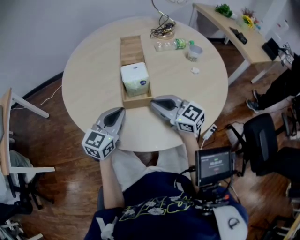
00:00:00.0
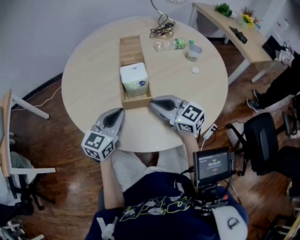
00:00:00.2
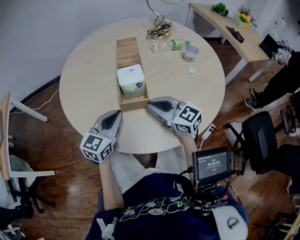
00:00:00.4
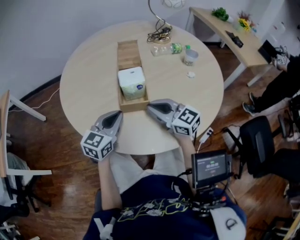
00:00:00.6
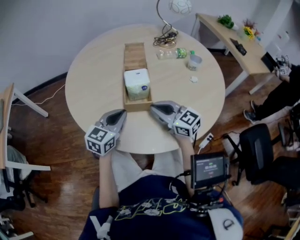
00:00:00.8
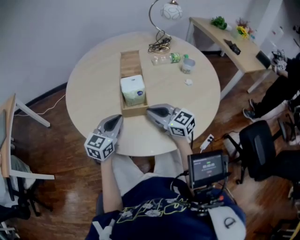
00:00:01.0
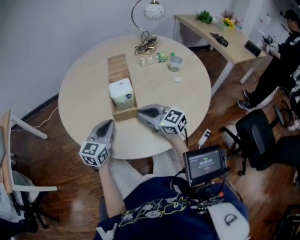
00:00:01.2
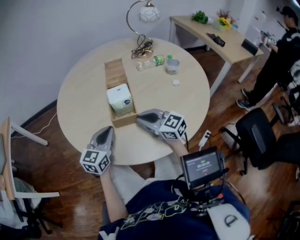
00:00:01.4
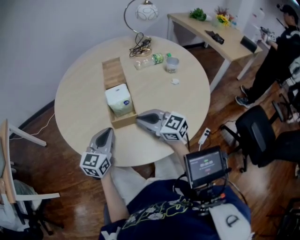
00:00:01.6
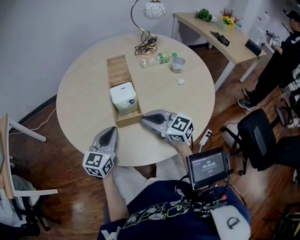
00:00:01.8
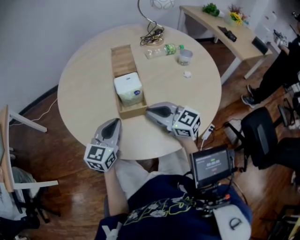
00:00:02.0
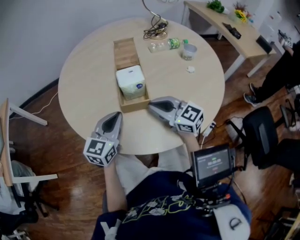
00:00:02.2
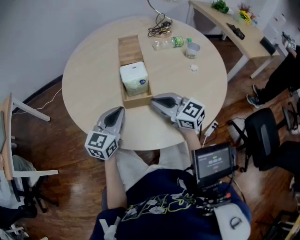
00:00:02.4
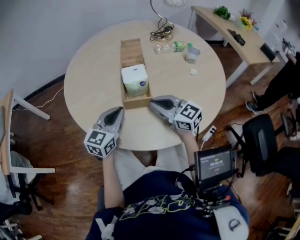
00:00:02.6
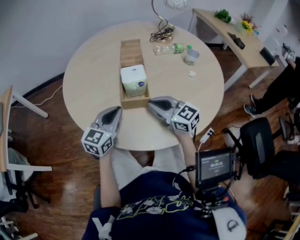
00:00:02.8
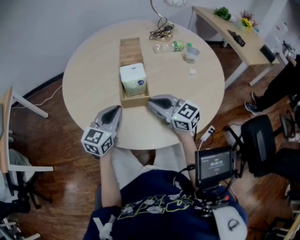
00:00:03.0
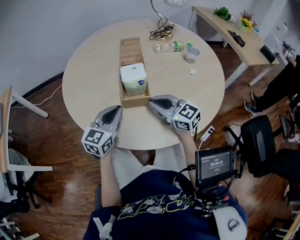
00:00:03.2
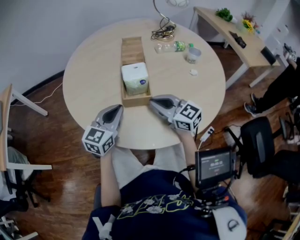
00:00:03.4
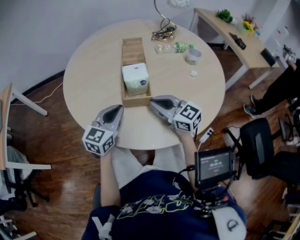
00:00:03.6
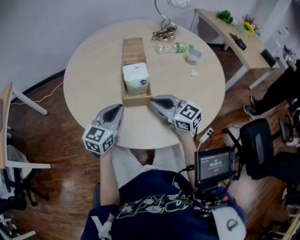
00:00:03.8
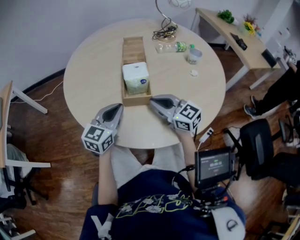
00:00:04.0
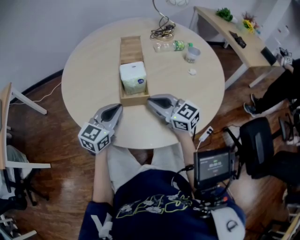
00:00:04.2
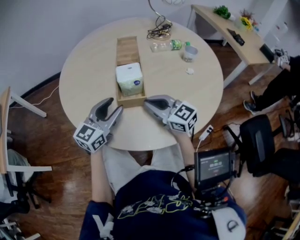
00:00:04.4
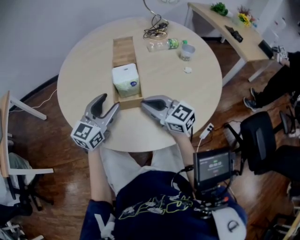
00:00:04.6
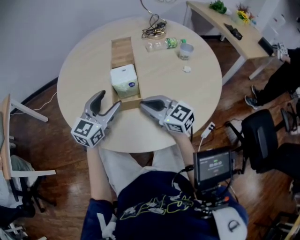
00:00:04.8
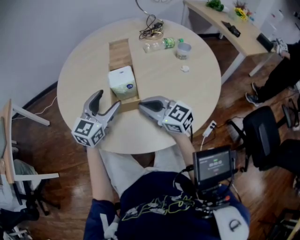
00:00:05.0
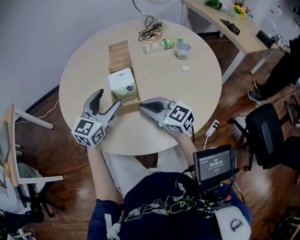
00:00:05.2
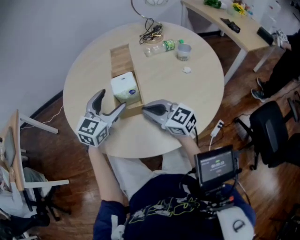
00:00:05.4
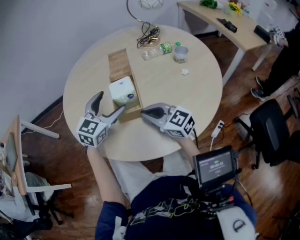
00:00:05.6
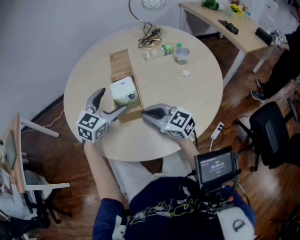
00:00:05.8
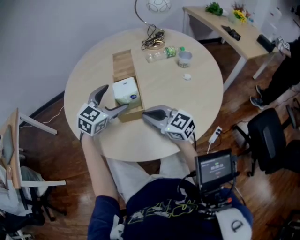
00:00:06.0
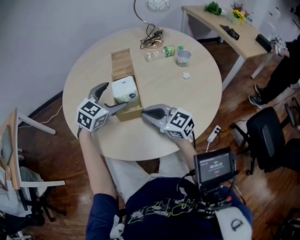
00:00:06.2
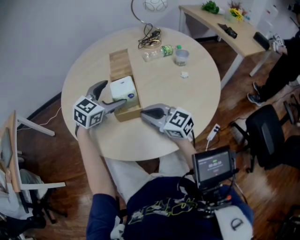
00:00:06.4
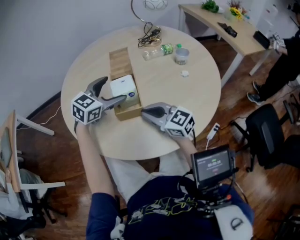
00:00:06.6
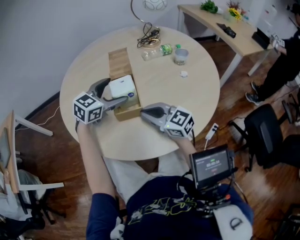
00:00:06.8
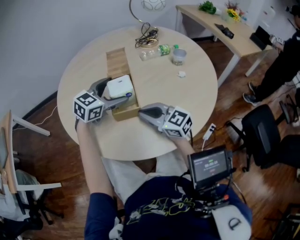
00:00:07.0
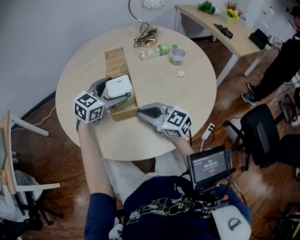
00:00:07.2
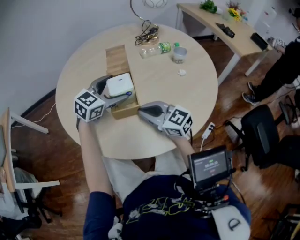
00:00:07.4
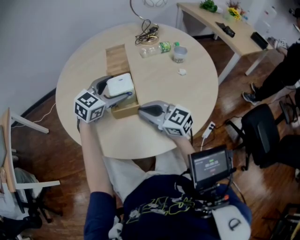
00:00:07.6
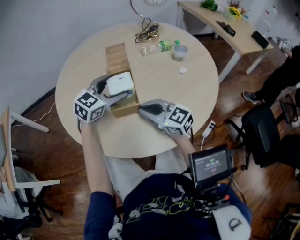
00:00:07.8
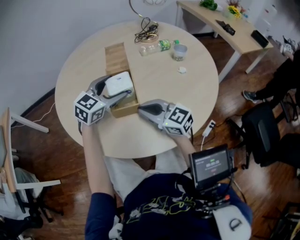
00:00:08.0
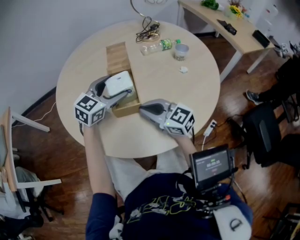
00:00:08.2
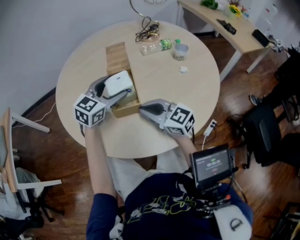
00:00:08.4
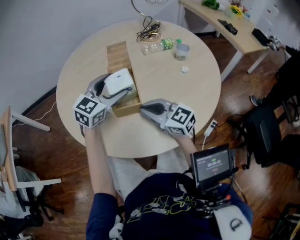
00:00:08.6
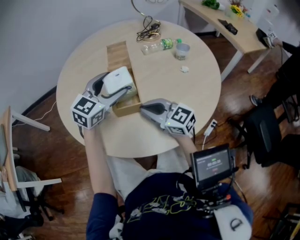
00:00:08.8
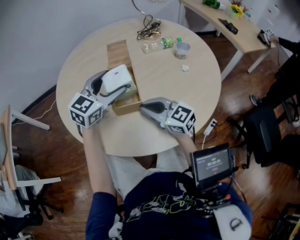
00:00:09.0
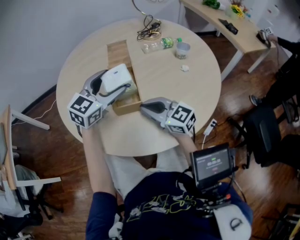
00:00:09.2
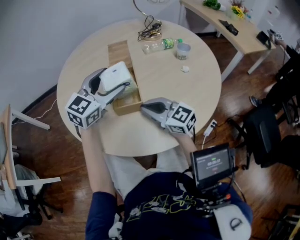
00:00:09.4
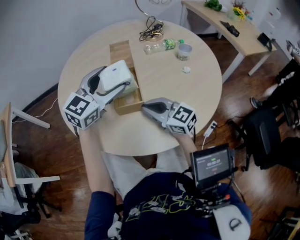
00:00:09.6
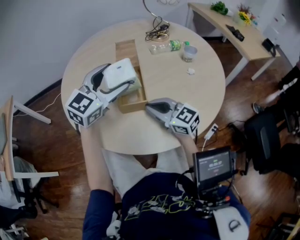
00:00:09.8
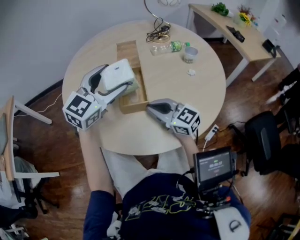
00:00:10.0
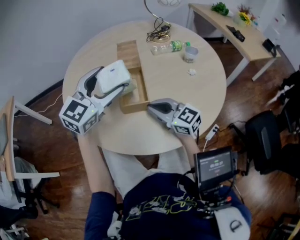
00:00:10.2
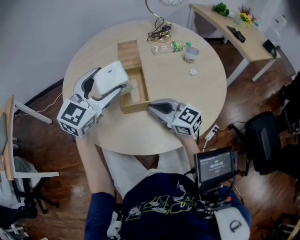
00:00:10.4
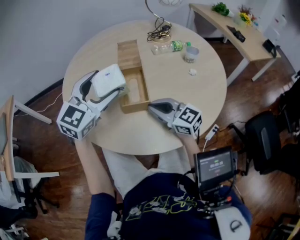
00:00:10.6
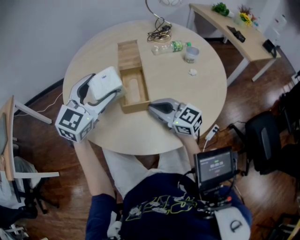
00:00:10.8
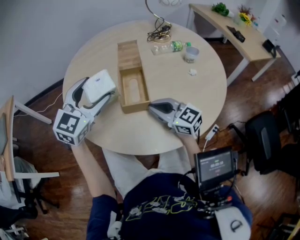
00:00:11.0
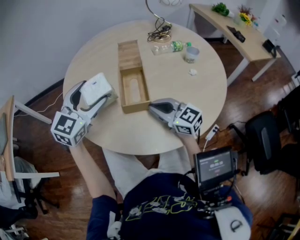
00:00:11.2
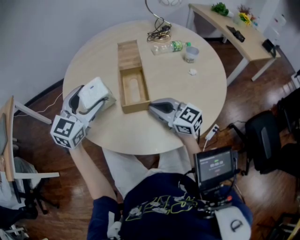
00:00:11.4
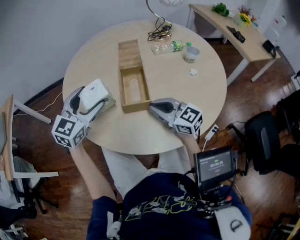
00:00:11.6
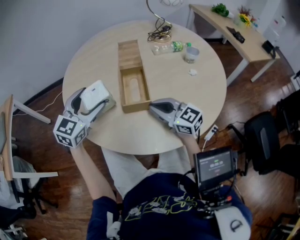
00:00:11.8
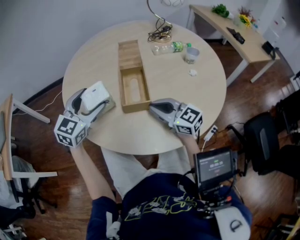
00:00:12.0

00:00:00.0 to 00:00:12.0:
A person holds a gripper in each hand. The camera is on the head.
00:00:00.0 to 00:00:01.6: The grippers make only small movements.
00:00:01.6 to 00:00:03.0: Both grippers stay put.
00:00:03.0 to 00:00:04.4: The grippers move only a little.
00:00:04.4 to 00:00:06.0: The left gripper goes about 10 cm forward, turns by some 30 degrees, and opens its fingers.
00:00:06.0 to 00:00:09.0: The grippers move only a little.
00:00:09.0 to 00:00:10.4: The left gripper goes about 5 cm upward.
00:00:10.4 to 00:00:12.0: The left gripper goes some 10 cm to the left and downward.

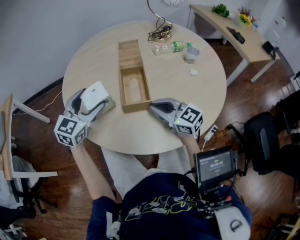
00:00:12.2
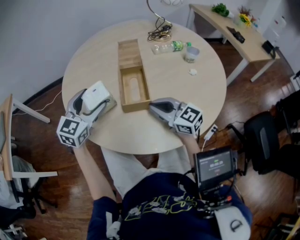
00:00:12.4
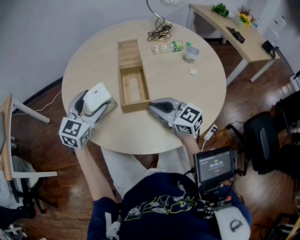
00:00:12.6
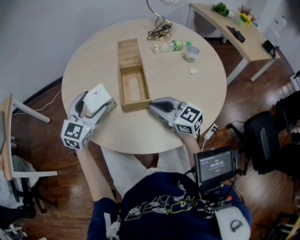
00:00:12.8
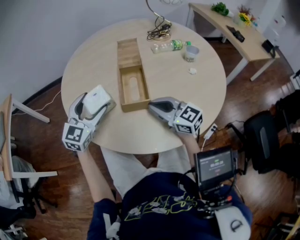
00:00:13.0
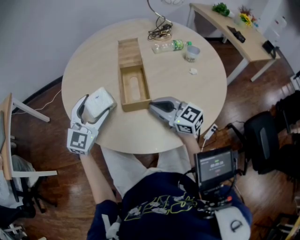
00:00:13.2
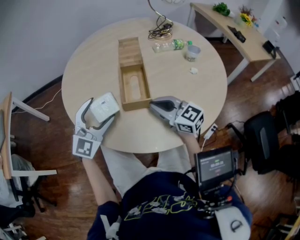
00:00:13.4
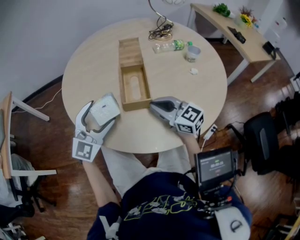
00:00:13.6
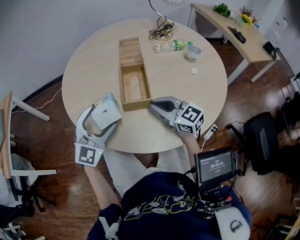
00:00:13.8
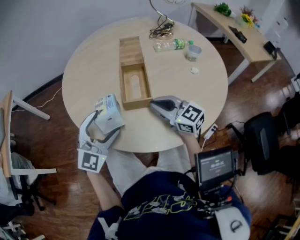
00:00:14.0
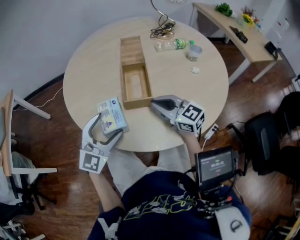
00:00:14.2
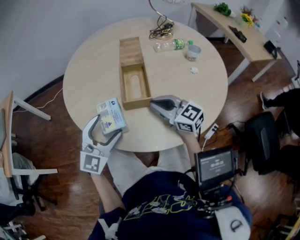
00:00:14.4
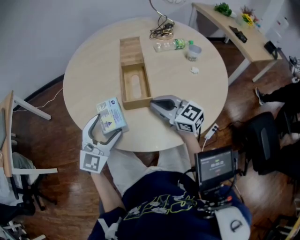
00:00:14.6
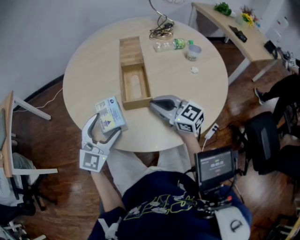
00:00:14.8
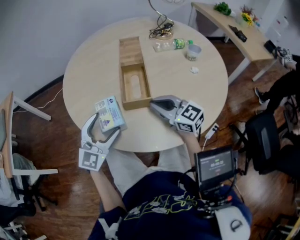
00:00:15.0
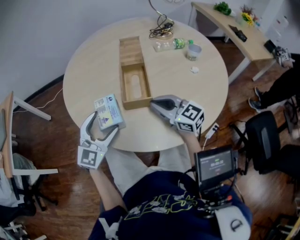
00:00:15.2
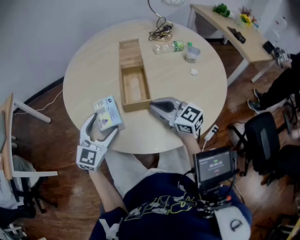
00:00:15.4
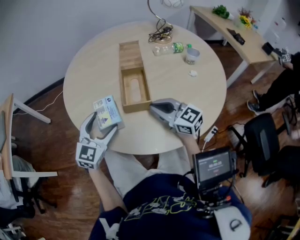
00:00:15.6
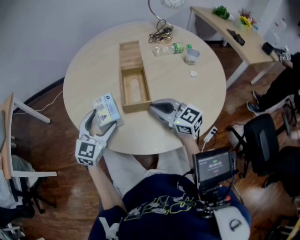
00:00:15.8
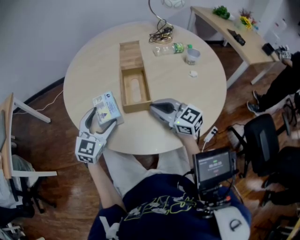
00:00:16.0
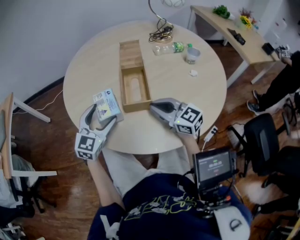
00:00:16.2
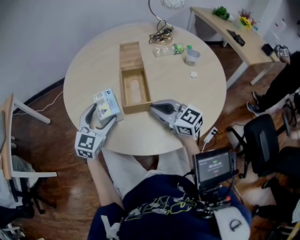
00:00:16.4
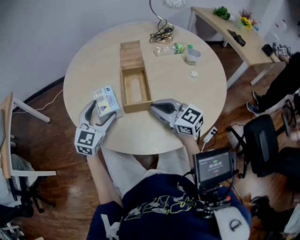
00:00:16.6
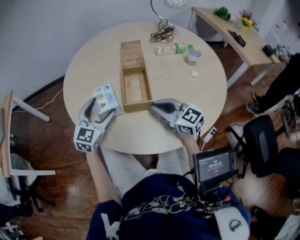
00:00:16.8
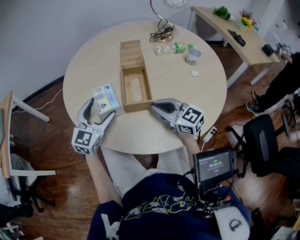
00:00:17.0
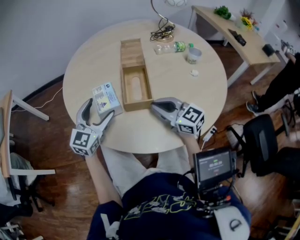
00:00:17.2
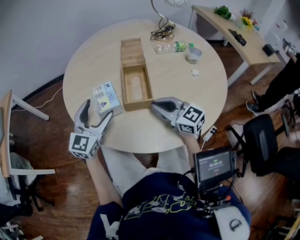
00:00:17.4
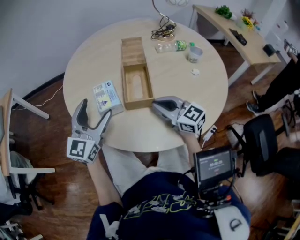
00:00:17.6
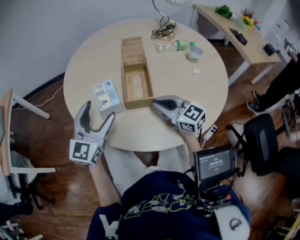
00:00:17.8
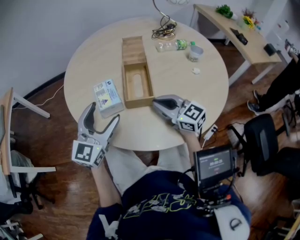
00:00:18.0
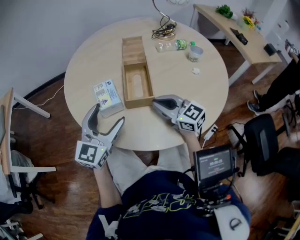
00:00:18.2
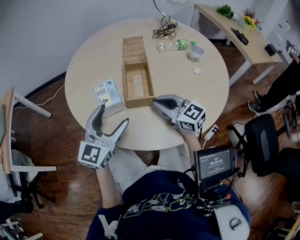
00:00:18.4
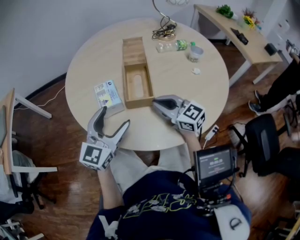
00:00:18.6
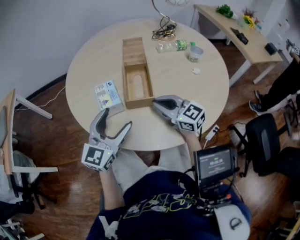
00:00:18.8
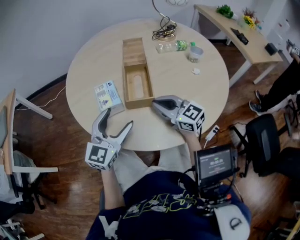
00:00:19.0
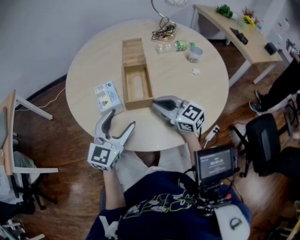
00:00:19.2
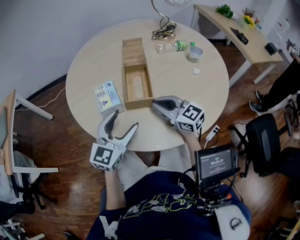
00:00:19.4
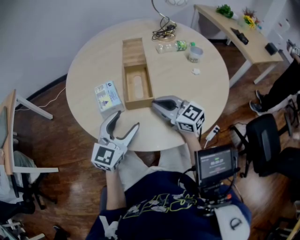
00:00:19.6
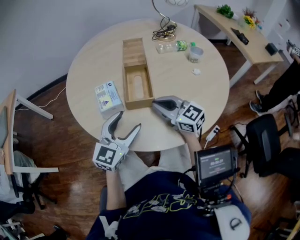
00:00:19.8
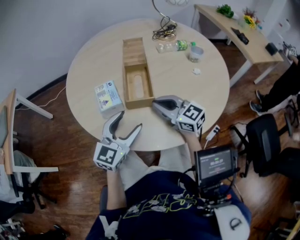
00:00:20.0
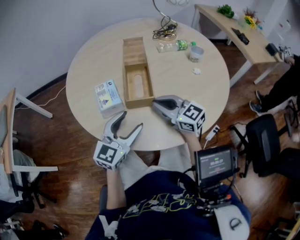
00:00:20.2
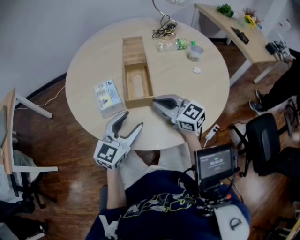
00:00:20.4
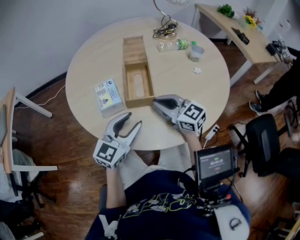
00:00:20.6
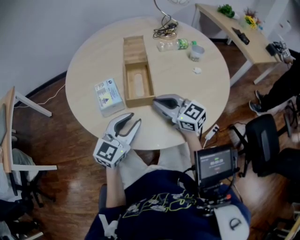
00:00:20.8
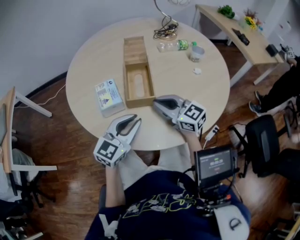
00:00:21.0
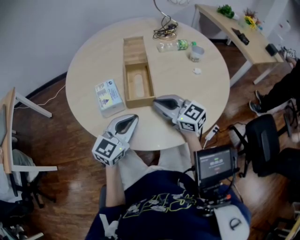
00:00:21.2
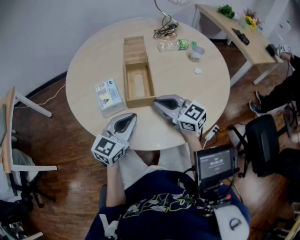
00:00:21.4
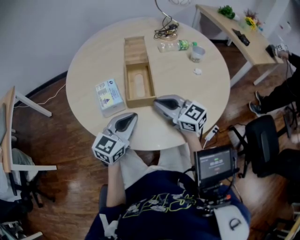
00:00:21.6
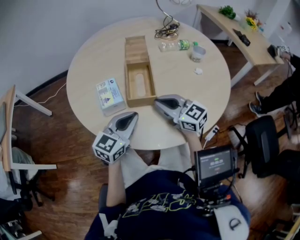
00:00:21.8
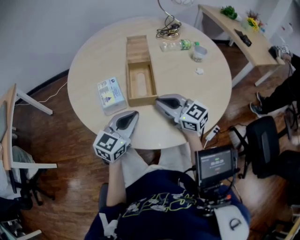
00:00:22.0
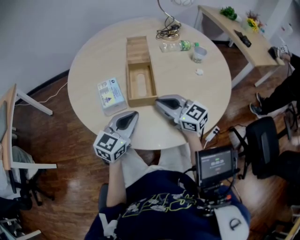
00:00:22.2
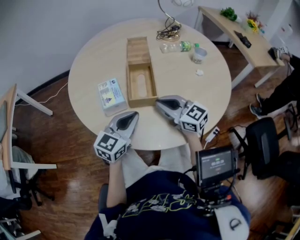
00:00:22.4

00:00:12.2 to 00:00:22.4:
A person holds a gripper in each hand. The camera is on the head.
00:00:12.2 to 00:00:13.6: The left gripper heads backward, covering about 5 cm, and rotates roughly 30 degrees.
00:00:13.6 to 00:00:15.2: The left gripper changes its angle by about 20 degrees.
00:00:15.2 to 00:00:16.6: The left gripper goes roughly 5 cm forward.
00:00:16.6 to 00:00:18.0: The left gripper is displaced upward and backward by roughly 10 cm.
00:00:18.0 to 00:00:19.4: The left gripper heads to the right, covering approximately 5 cm.
00:00:19.4 to 00:00:21.0: The left gripper closes.
00:00:21.0 to 00:00:22.4: The grippers move only a little.

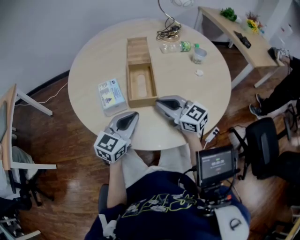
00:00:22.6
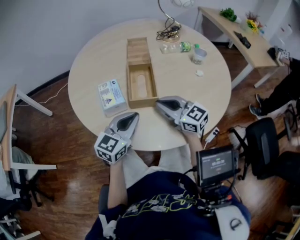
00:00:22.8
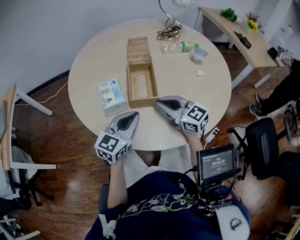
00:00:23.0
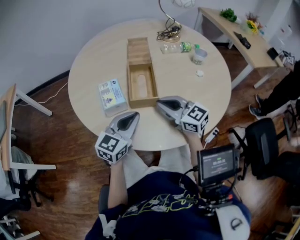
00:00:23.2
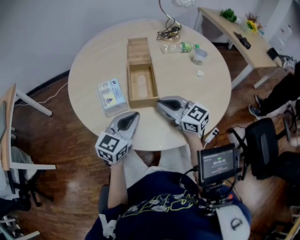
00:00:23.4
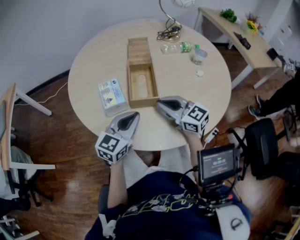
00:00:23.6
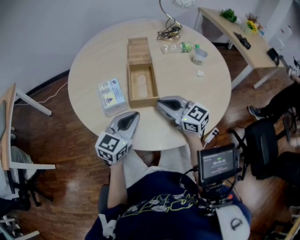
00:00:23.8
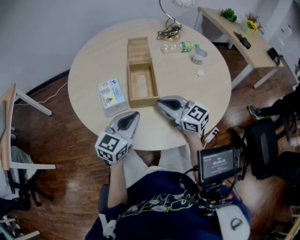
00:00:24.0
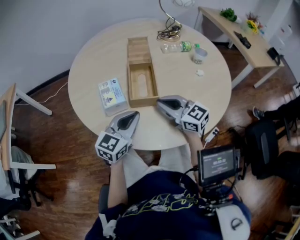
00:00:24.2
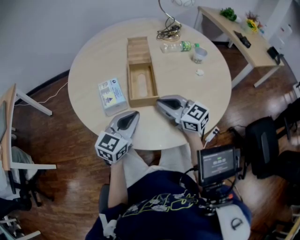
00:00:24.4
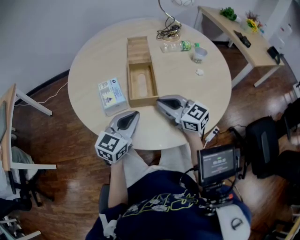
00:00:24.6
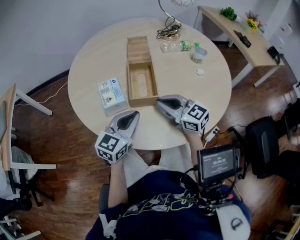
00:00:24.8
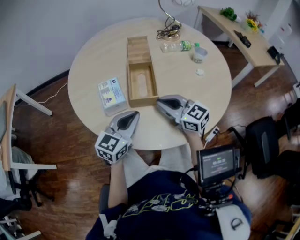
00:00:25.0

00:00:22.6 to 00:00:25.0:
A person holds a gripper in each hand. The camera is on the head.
00:00:22.6 to 00:00:25.0: Both grippers stay about where they are.
